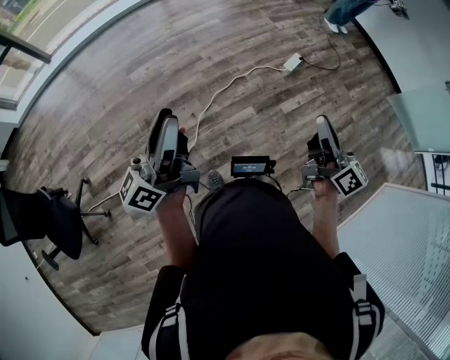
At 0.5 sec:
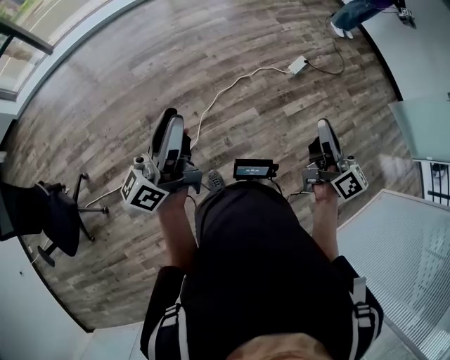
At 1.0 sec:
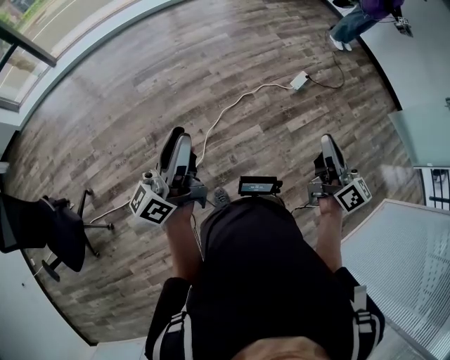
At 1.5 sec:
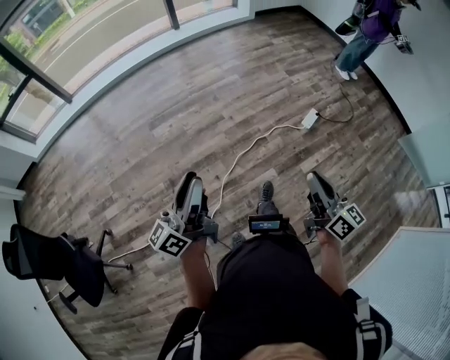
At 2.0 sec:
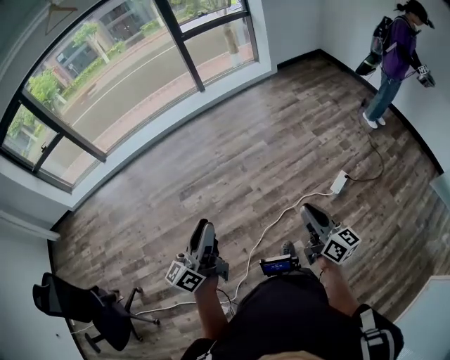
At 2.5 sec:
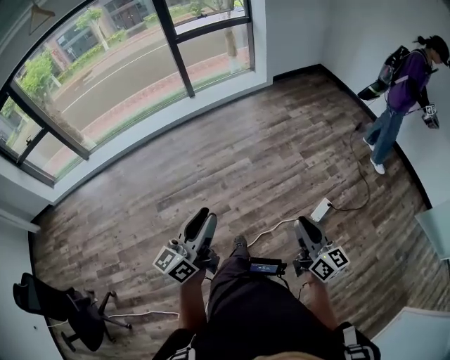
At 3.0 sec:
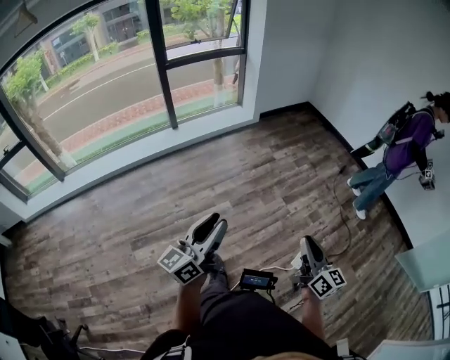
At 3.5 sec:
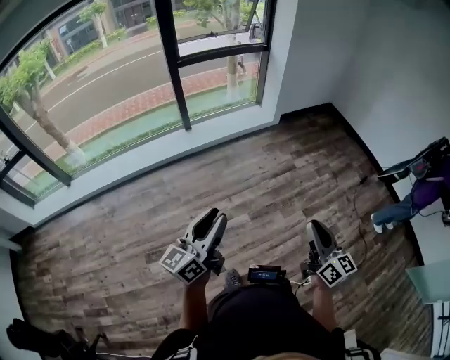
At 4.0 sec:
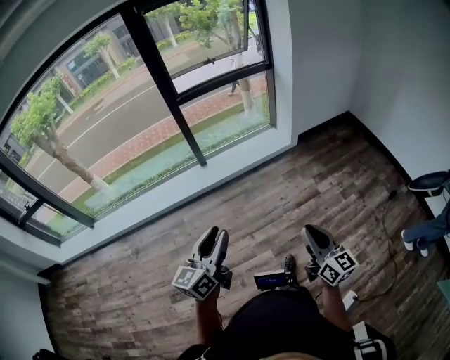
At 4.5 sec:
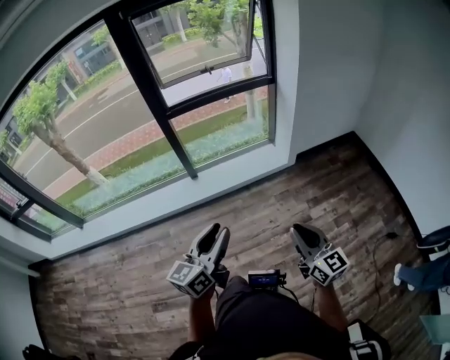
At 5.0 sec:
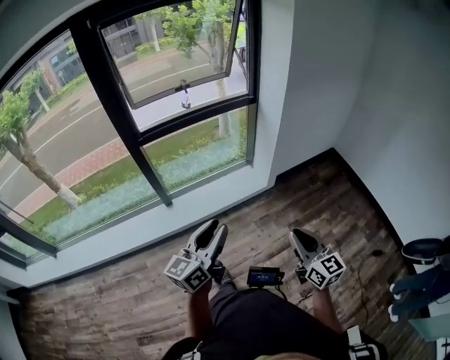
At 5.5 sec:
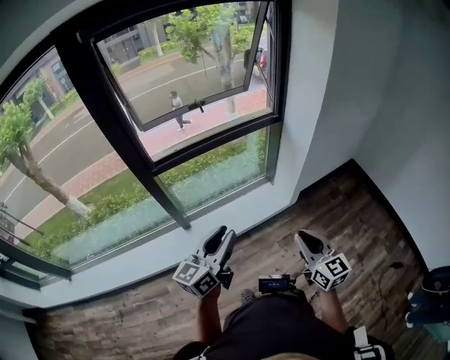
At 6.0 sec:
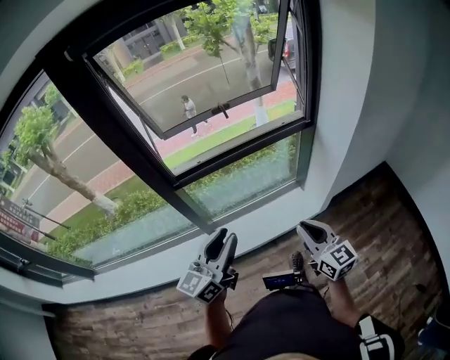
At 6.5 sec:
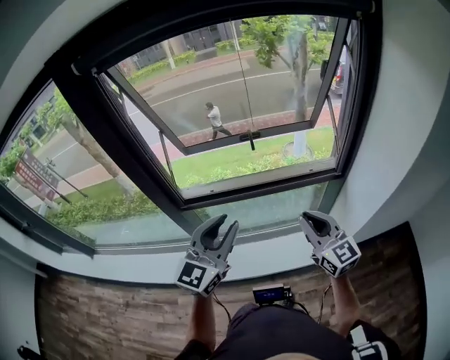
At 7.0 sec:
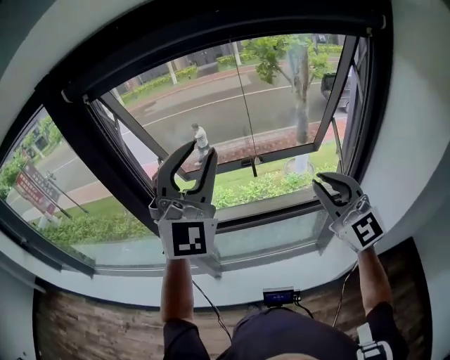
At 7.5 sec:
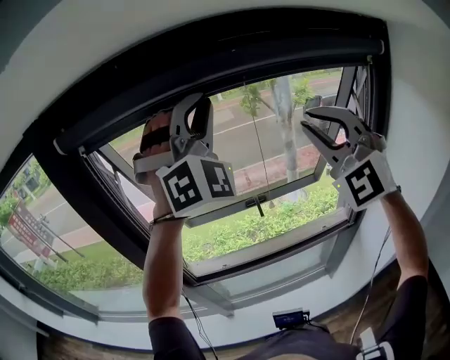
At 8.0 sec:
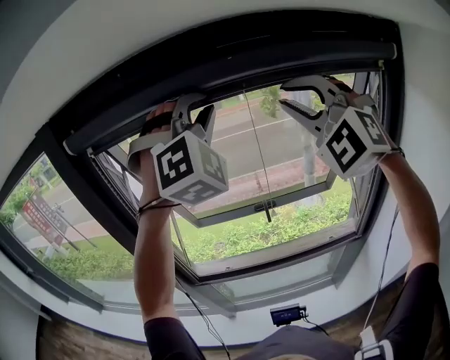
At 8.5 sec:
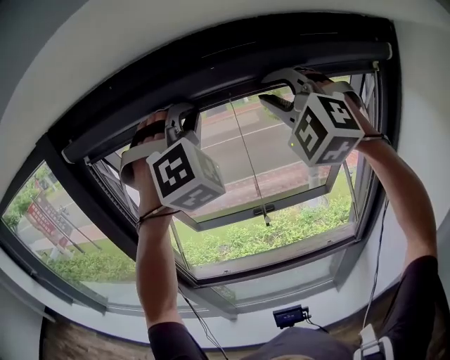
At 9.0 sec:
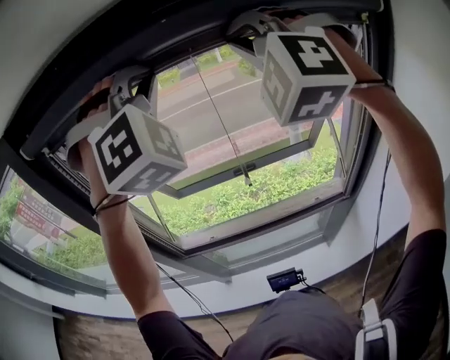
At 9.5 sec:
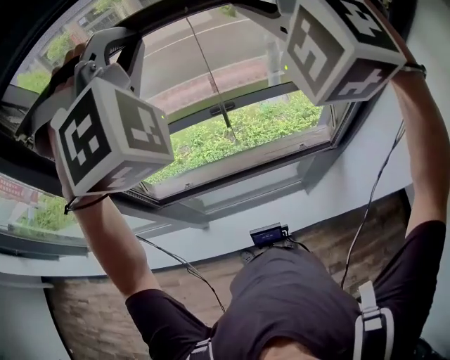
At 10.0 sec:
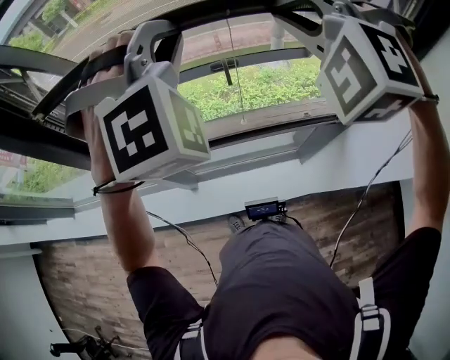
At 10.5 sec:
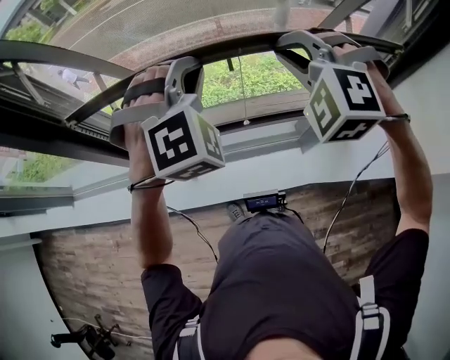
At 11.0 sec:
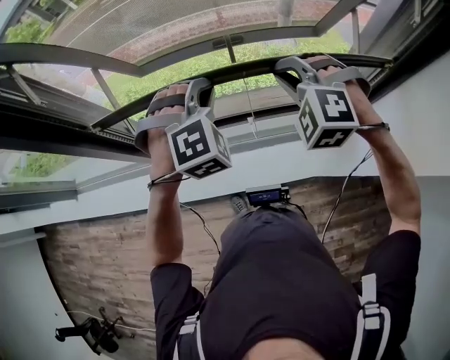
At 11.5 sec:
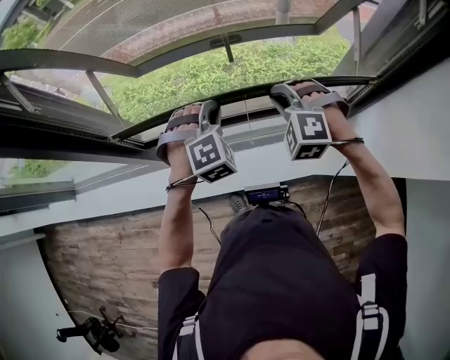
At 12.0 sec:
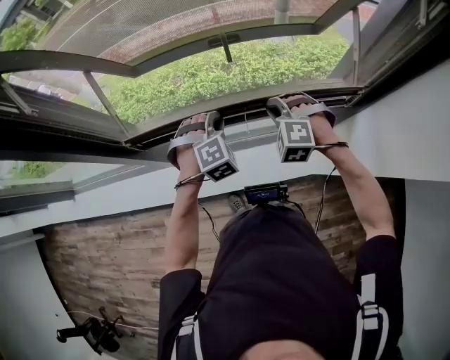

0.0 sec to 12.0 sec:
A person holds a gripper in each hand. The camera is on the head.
0.0 sec to 2.0 sec: The grippers both shift forward by some 30 cm.
2.0 sec to 4.0 sec: The two grippers travel together, forward, approximately 80 cm.
4.0 sec to 6.0 sec: The pair of grippers is taken forward, roughly 70 cm.
6.0 sec to 8.0 sec: Both grippers are carried forward, some 50 cm. The grippers both shift upward by approximately 50 cm. The right gripper twists some 90 degrees counterclockwise, seen from behind. The left gripper twists roughly 100 degrees clockwise, seen from behind.
8.0 sec to 10.0 sec: The grippers both shift downward by some 20 cm. The left gripper rotates approximately 20 degrees. The right gripper rotates about 30 degrees.
10.0 sec to 12.0 sec: Both grippers move downward, roughly 40 cm. The right gripper changes its angle by some 30 degrees. The left gripper tilts its fingers roughly 30 degrees downward.

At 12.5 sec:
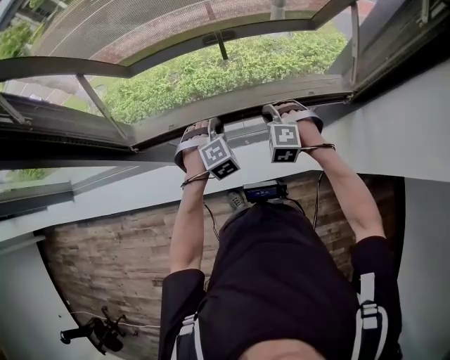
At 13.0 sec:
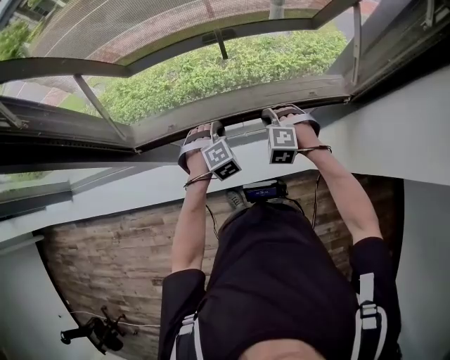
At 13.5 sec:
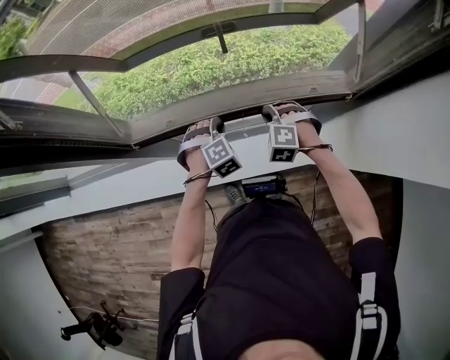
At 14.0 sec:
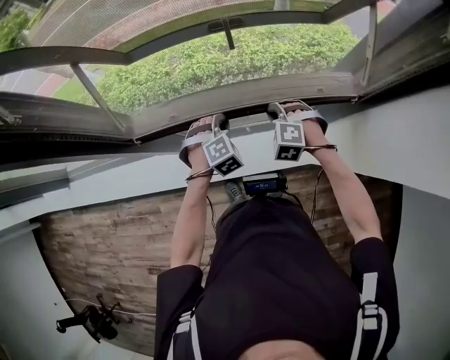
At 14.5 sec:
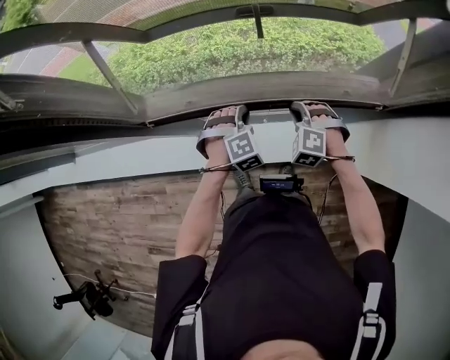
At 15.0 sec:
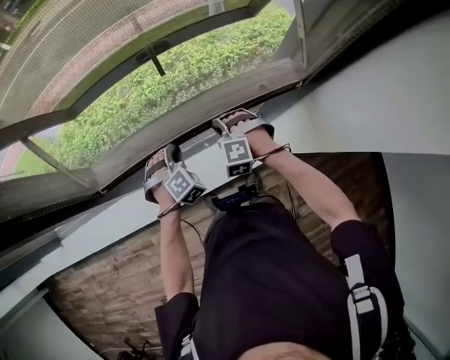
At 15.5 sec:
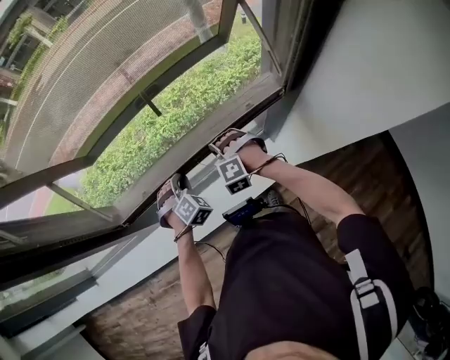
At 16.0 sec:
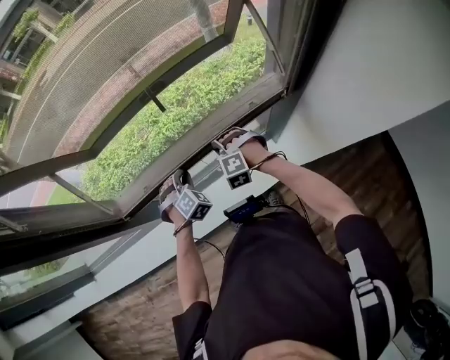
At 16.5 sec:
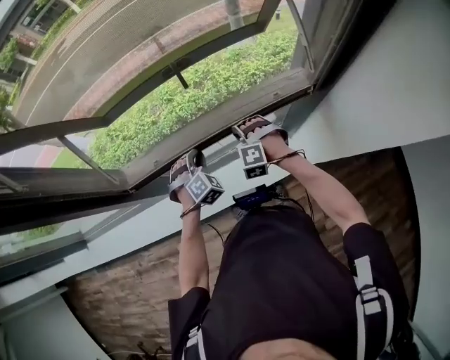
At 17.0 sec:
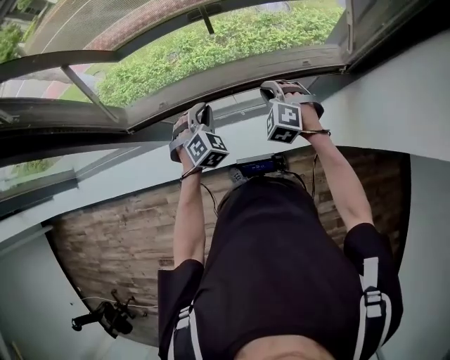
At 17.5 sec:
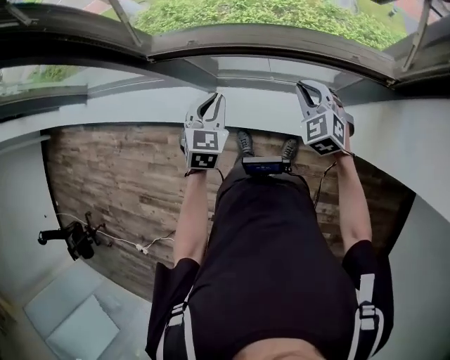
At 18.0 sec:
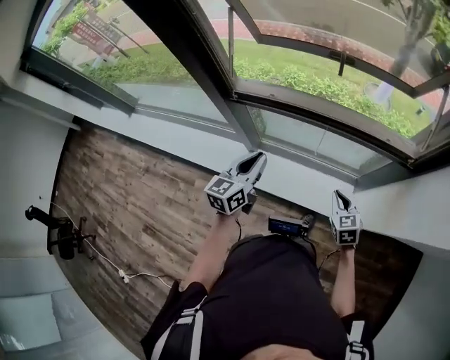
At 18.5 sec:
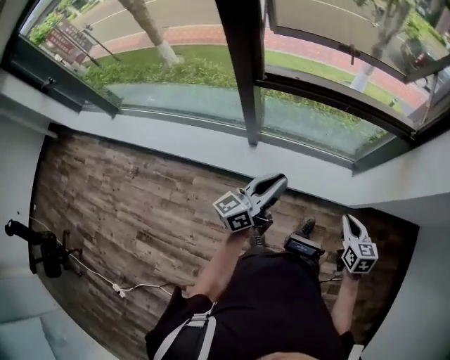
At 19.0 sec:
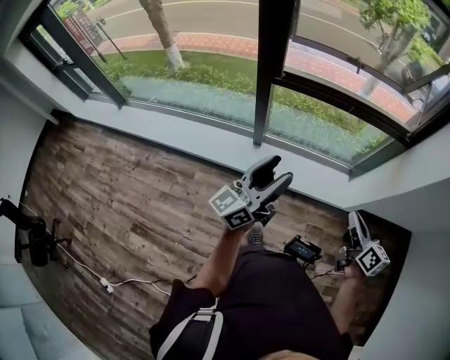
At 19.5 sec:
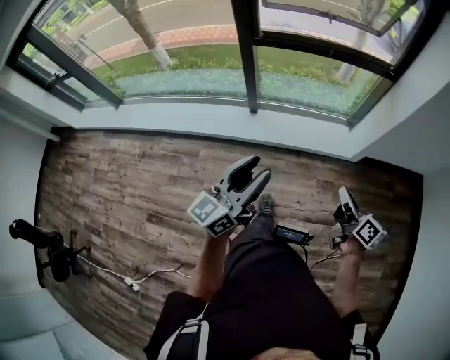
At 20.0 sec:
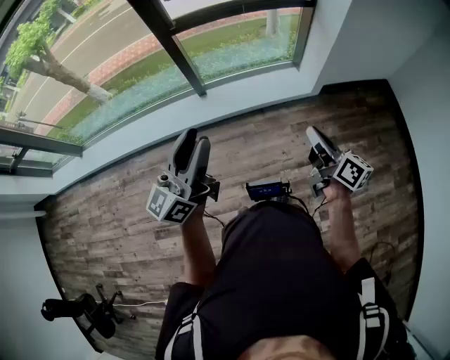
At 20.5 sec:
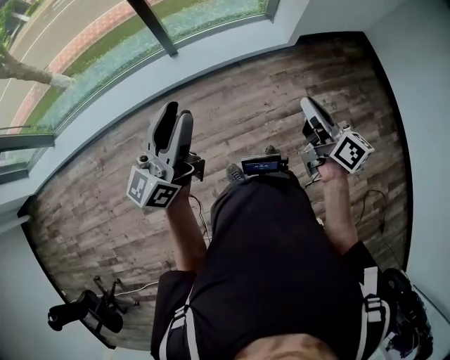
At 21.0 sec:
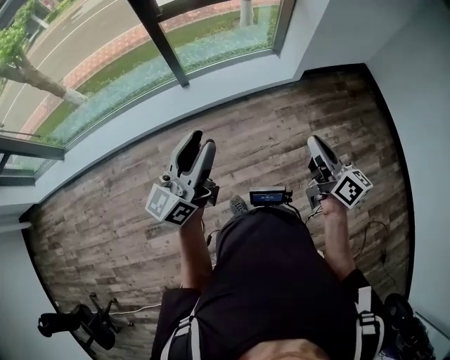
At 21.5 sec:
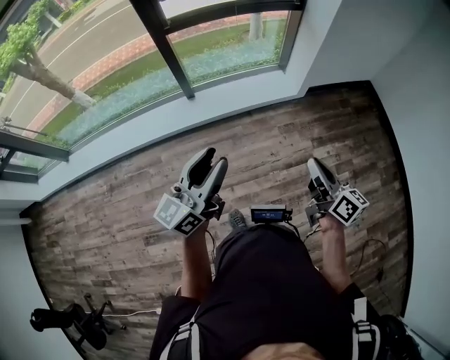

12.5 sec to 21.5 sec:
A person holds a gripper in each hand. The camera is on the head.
12.5 sec to 17.0 sec: There are only small adjustments of the grippers.
17.0 sec to 19.5 sec: Both grippers are carried backward, roughly 70 cm. The left gripper travels upward by approximately 30 cm, points its fingers approximately 60 degrees further upward, and opens its fingers; the right gripper rolls clockwise, seen from behind, by roughly 90 degrees.
19.5 sec to 21.5 sec: The right gripper moves backward, some 20 cm. The left gripper shifts about 10 cm backward.

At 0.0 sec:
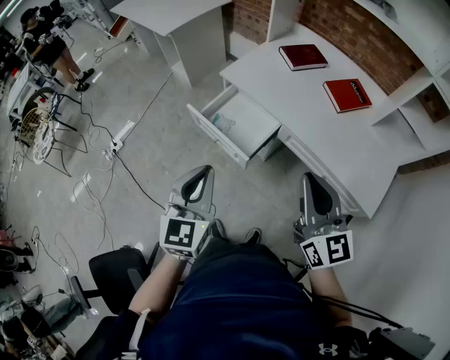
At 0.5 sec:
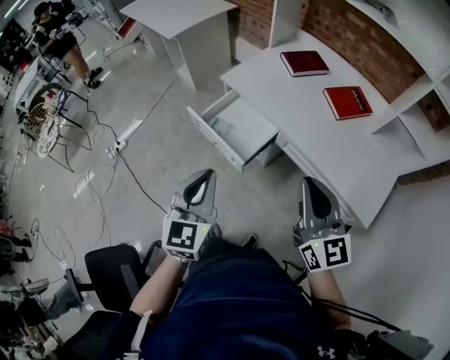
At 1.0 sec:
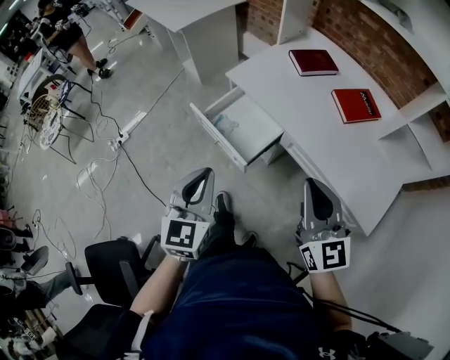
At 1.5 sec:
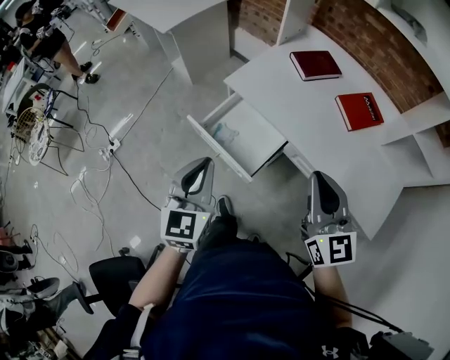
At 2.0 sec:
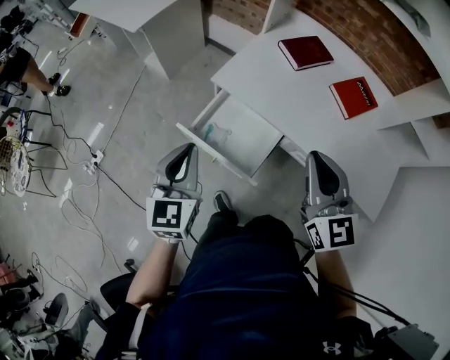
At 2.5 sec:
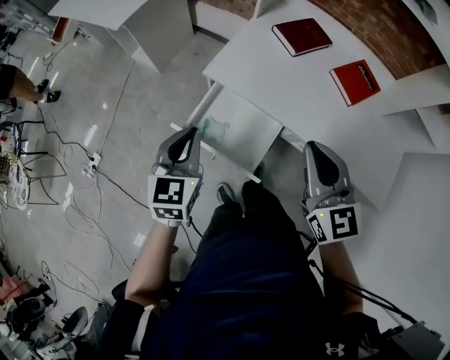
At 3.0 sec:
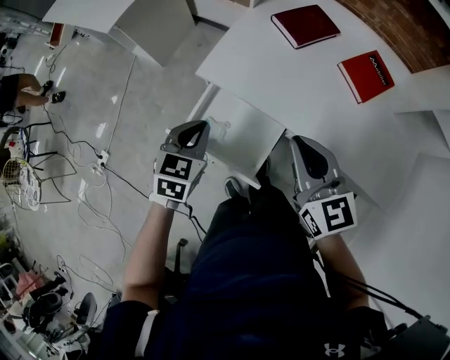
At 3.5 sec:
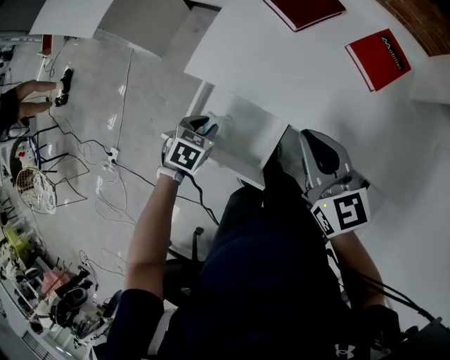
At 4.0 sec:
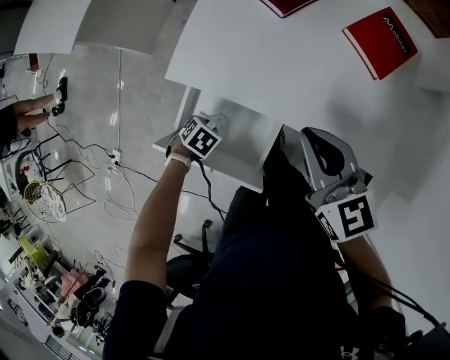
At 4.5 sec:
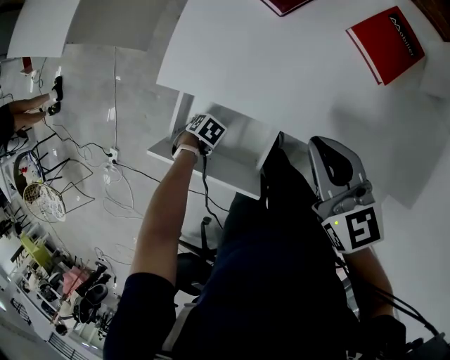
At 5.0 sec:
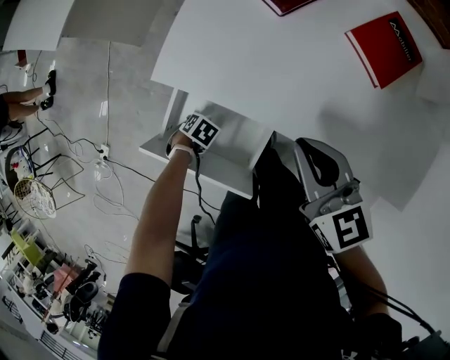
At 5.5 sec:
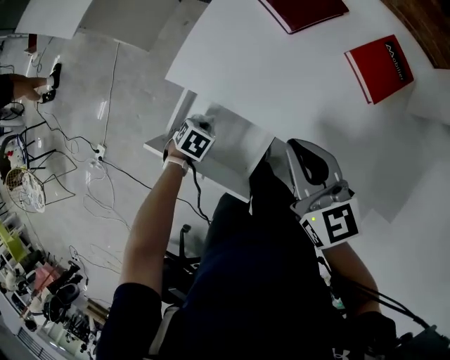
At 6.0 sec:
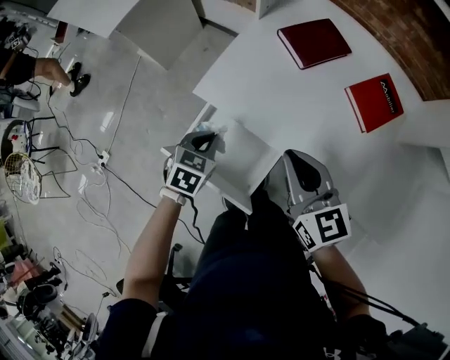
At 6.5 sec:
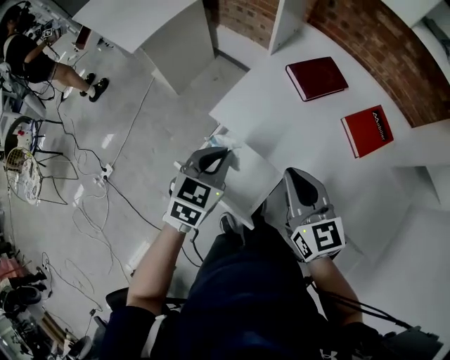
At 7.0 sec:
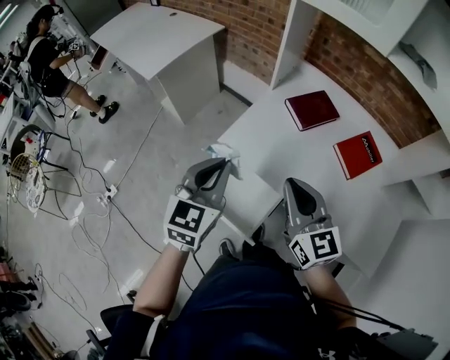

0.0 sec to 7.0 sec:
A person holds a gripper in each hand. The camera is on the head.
0.0 sec to 2.0 sec: Both grippers travel together forward, some 20 cm.
2.0 sec to 3.5 sec: The left gripper shifts about 30 cm downward and forward, angles its fingers downward, by roughly 50 degrees, and opens up, while the right gripper heads downward and forward, covering some 15 cm, and swivels roughly 20 degrees.
3.5 sec to 5.0 sec: The left gripper is displaced downward by roughly 20 cm, rotates approximately 30 degrees, and closes its fingers.
5.0 sec to 7.0 sec: The left gripper heads upward, covering some 50 cm, and tilts its fingers roughly 60 degrees upward. The right gripper moves upward, about 15 cm, and changes its angle by roughly 20 degrees.
